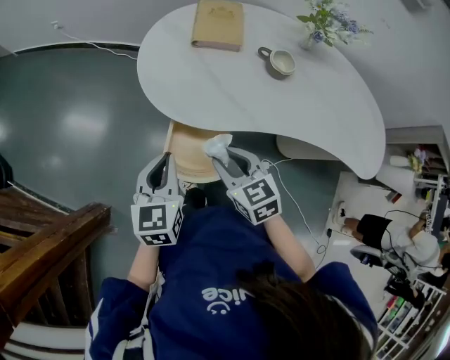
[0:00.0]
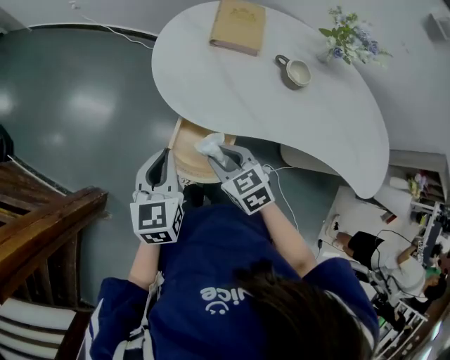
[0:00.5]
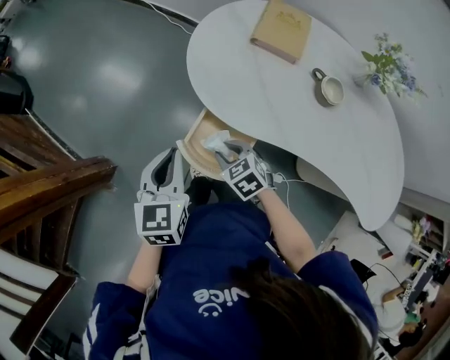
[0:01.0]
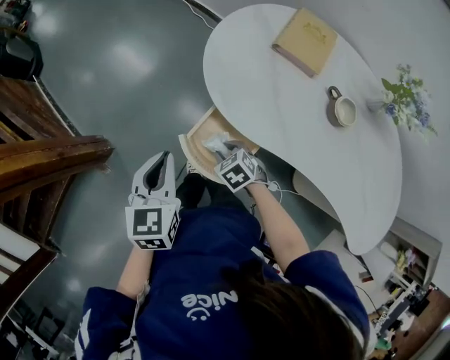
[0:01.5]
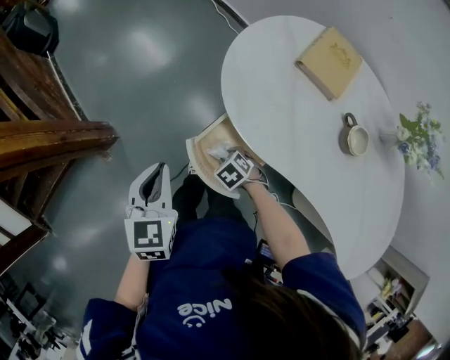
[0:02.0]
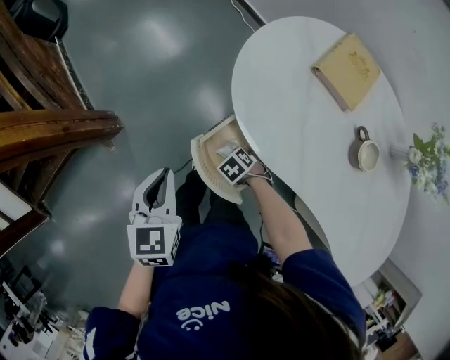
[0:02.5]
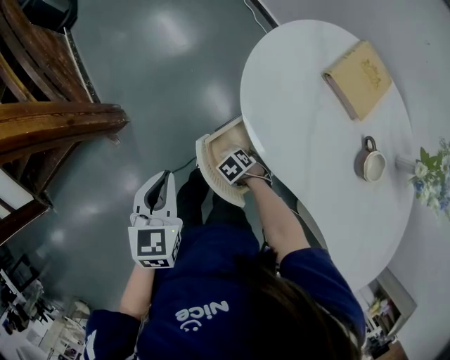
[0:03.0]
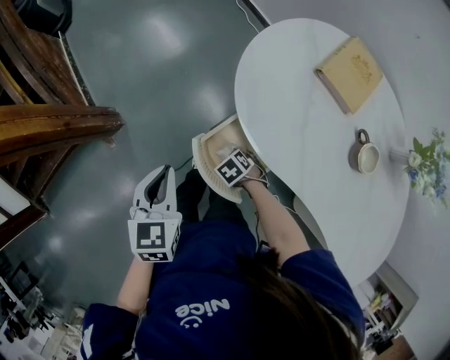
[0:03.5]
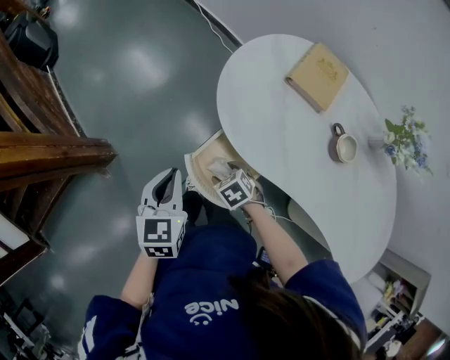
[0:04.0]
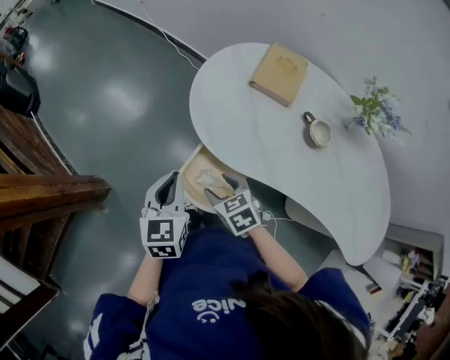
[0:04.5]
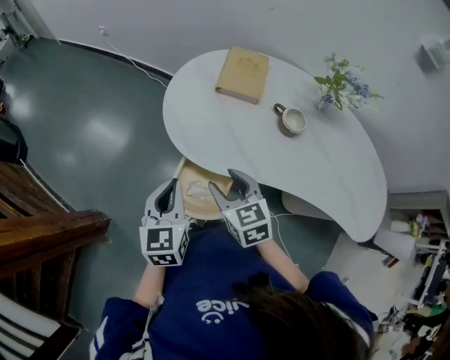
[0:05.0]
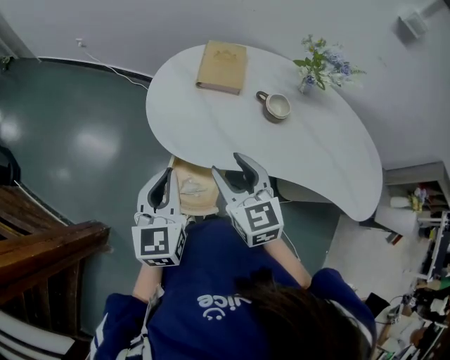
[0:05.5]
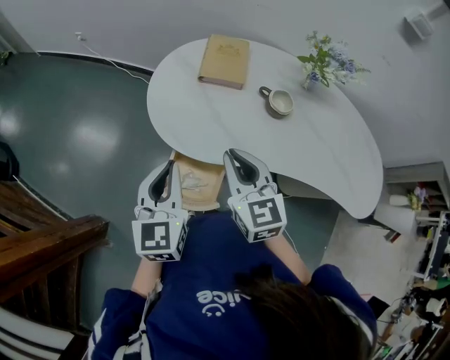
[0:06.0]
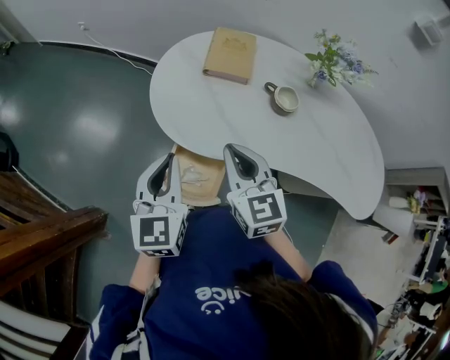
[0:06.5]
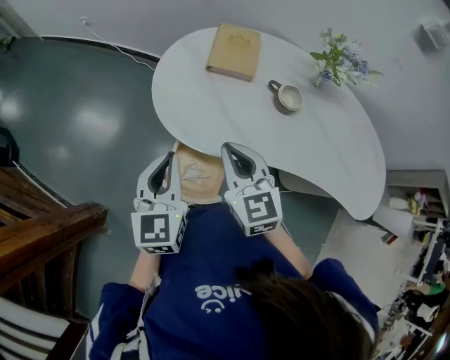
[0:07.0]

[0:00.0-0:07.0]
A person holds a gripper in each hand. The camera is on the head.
0:00.0 to 0:02.0: The left gripper changes place by roughly 10 cm, and rotates some 30 degrees. Meanwhile the right gripper is displaced downward by approximately 25 cm, and angles its fingers downward, by approximately 40 degrees.
0:02.0 to 0:03.5: The right gripper opens up.
0:03.5 to 0:05.0: The right gripper moves upward, approximately 30 cm, and angles its fingers upward, by some 40 degrees. Meanwhile the left gripper shifts by approximately 15 cm, and swivels approximately 30 degrees.
0:05.0 to 0:07.0: The right gripper is displaced upward by some 5 cm, and closes up.

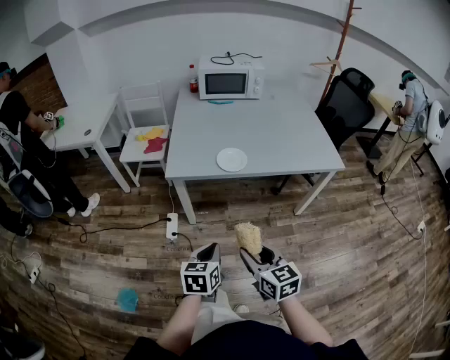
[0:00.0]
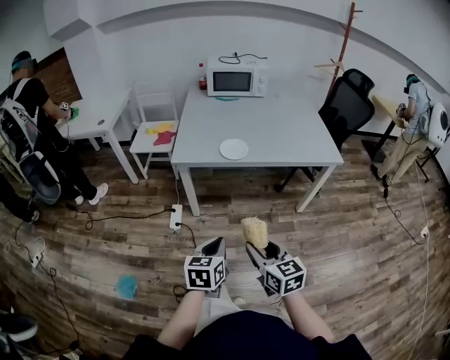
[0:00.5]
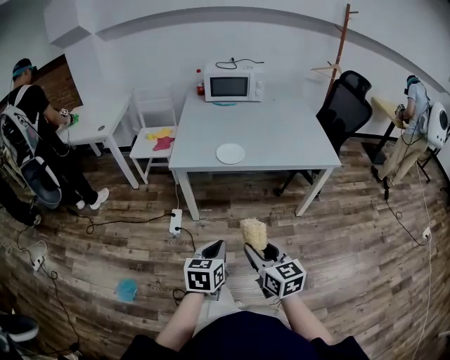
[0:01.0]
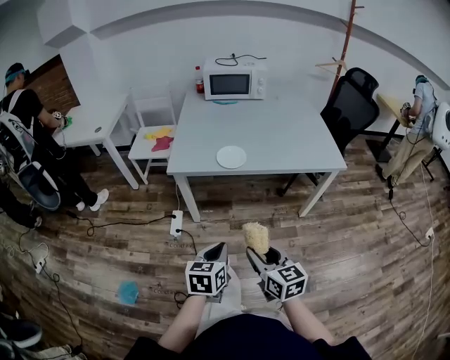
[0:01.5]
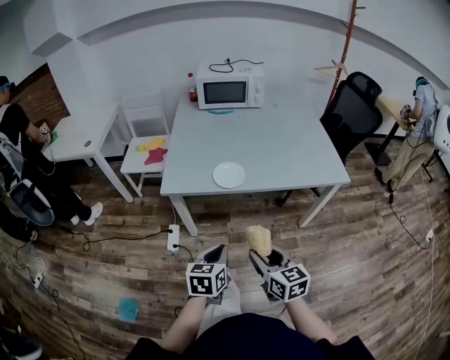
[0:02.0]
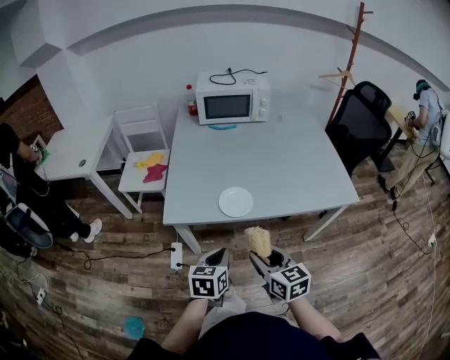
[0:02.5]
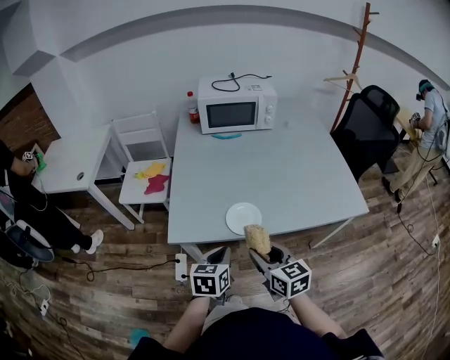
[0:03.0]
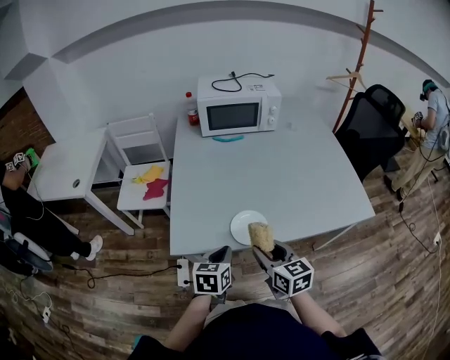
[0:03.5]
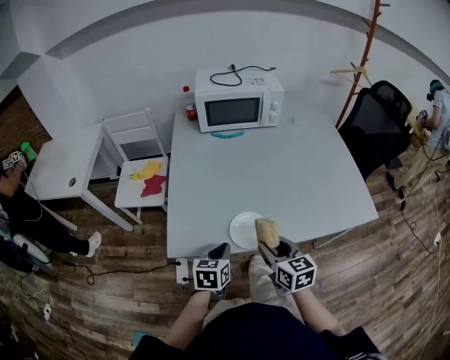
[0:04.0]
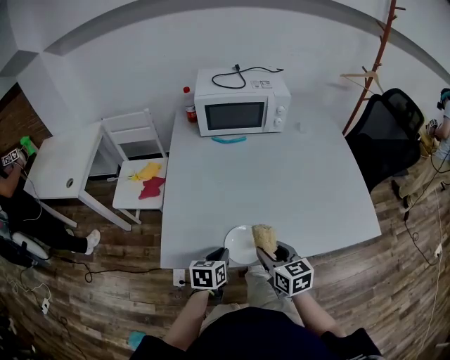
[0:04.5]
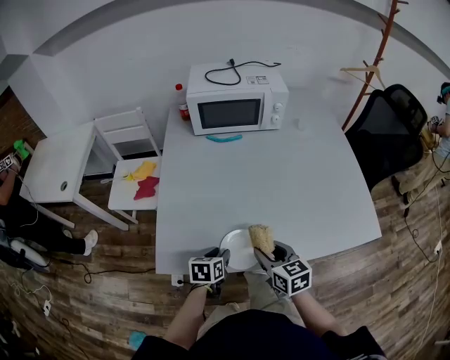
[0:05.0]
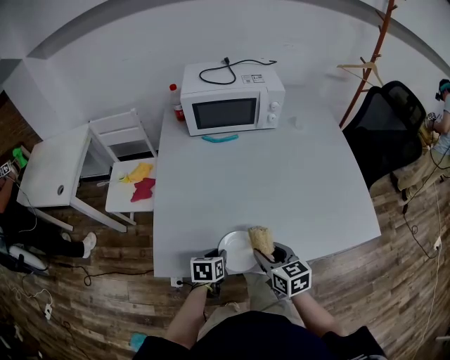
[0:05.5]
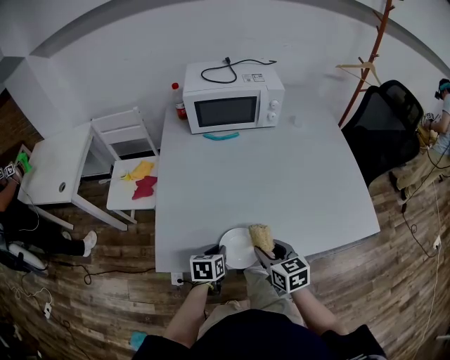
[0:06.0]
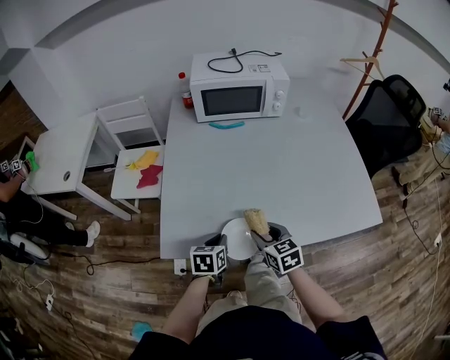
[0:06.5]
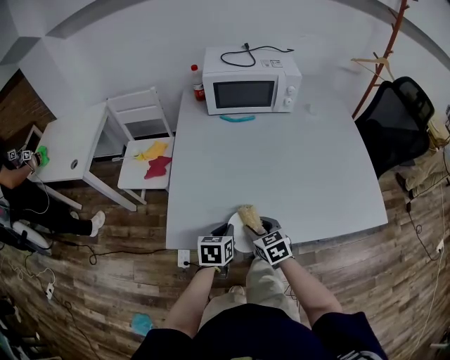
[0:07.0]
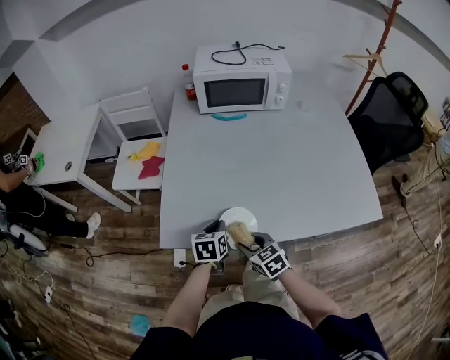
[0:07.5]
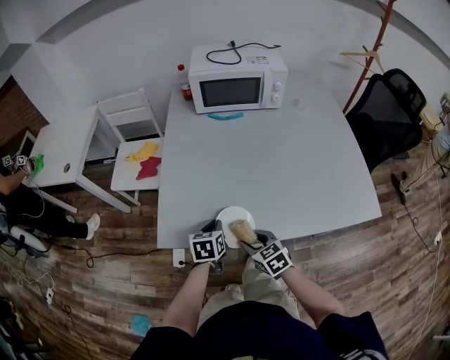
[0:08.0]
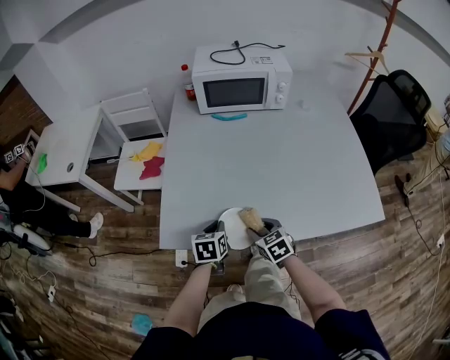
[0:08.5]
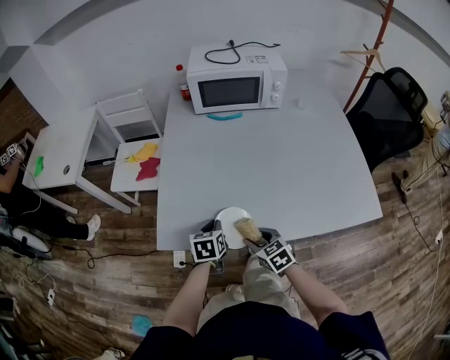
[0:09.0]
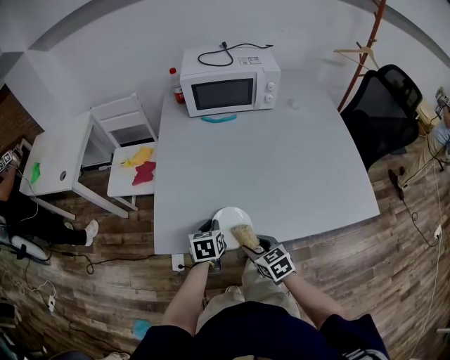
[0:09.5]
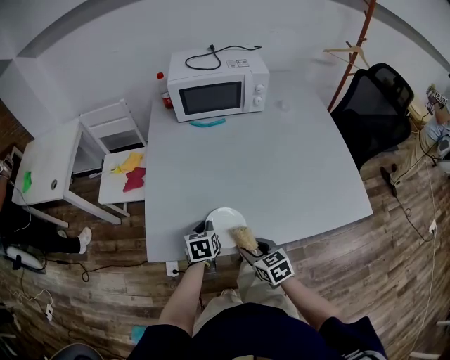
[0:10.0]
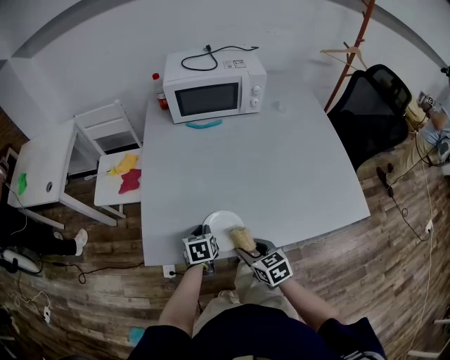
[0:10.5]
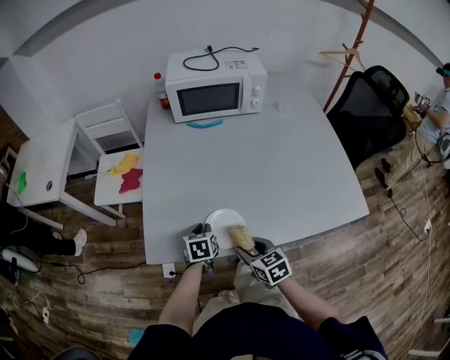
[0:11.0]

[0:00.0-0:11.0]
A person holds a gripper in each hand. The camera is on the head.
0:00.0 to 0:02.0: The left gripper shifts roughly 10 cm forward and to the right. Meanwhile the right gripper moves to the right and forward, approximately 10 cm.
0:02.0 to 0:03.5: The grippers both shift forward by approximately 25 cm.
0:03.5 to 0:05.5: The right gripper is displaced forward, downward and to the right by approximately 15 cm, while the left gripper is displaced downward and forward by approximately 15 cm.
0:05.5 to 0:07.5: The right gripper is displaced to the left, downward and backward by about 15 cm, and turns by roughly 20 degrees. Meanwhile the left gripper moves some 5 cm.
0:09.0 to 0:11.0: The grippers stay close to where they were, moving slightly.

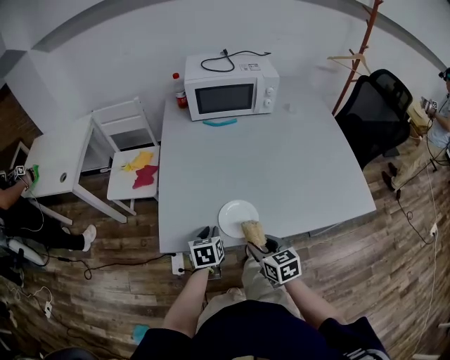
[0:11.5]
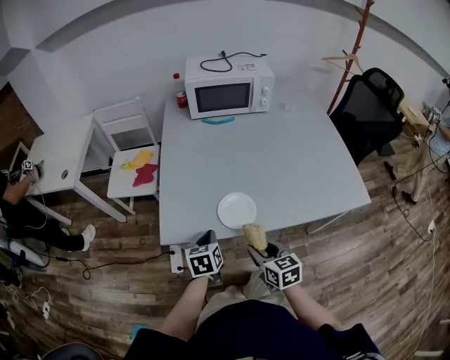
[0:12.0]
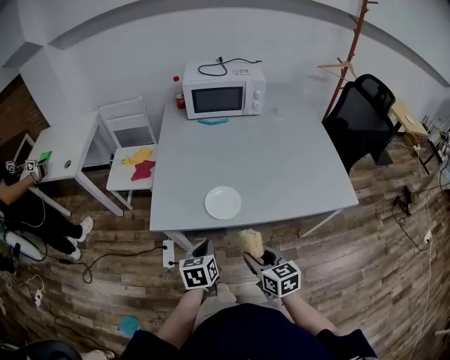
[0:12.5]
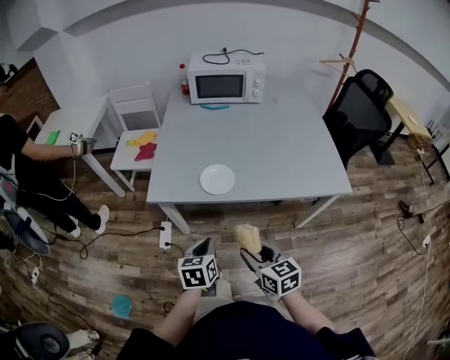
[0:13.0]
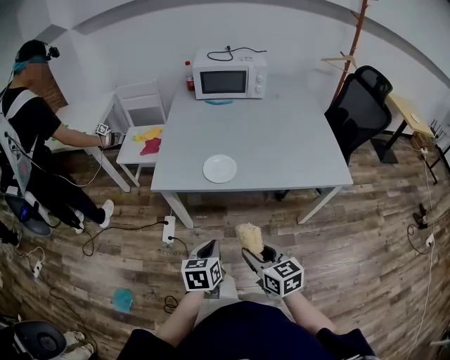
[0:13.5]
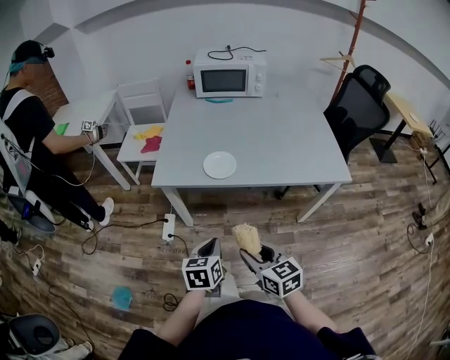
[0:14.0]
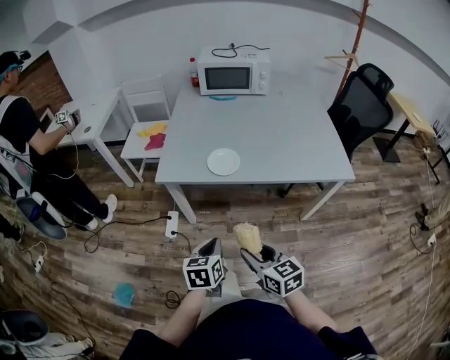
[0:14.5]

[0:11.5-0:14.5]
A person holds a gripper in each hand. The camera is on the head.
0:11.5 to 0:13.0: Both grippers move backward, roughly 25 cm.
0:13.0 to 0:14.5: The two grippers go some 10 cm backward.

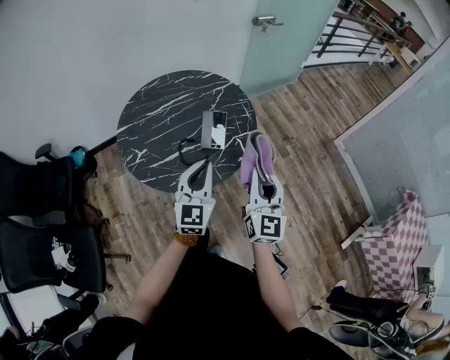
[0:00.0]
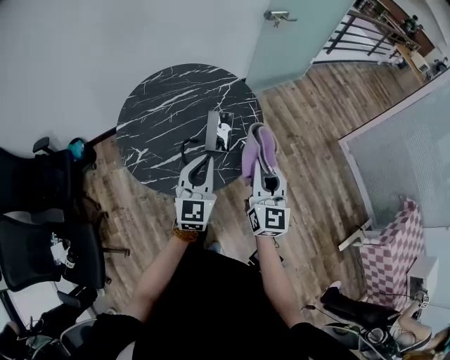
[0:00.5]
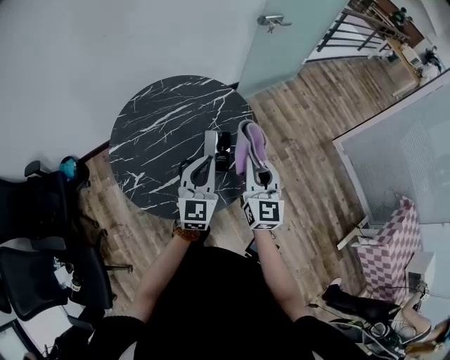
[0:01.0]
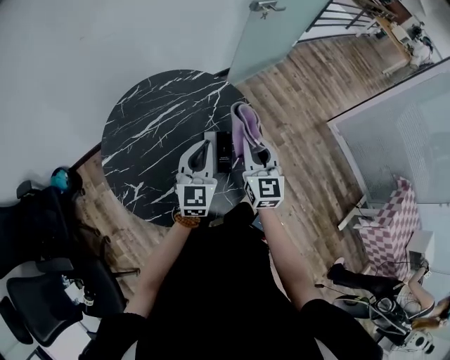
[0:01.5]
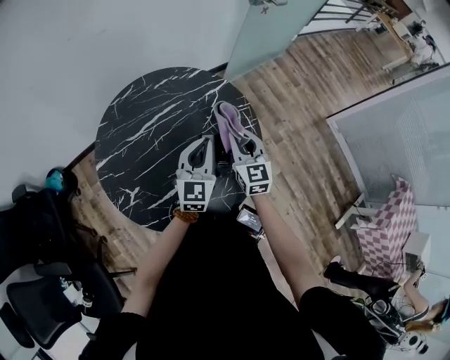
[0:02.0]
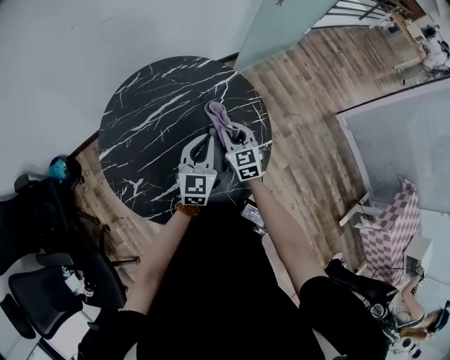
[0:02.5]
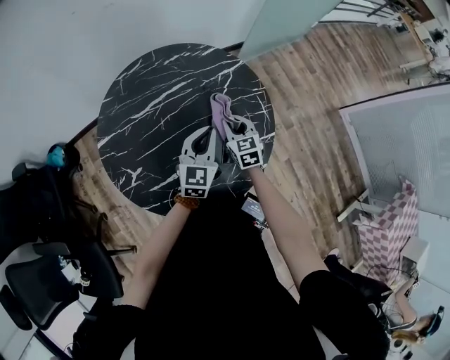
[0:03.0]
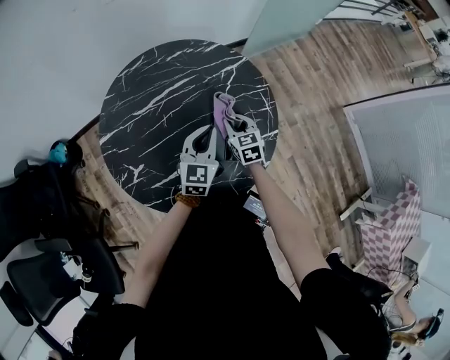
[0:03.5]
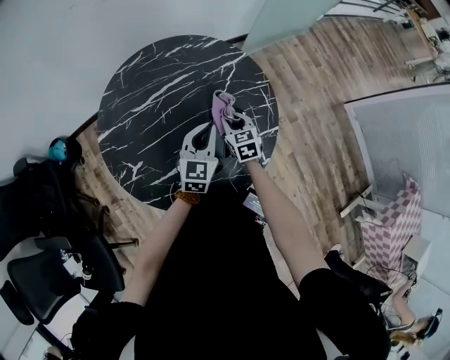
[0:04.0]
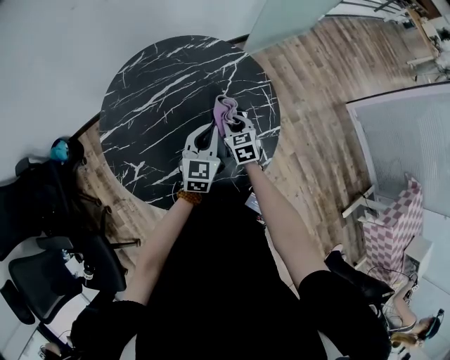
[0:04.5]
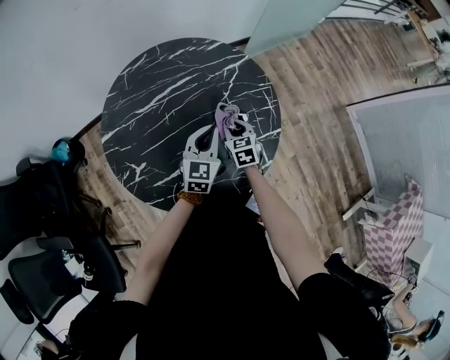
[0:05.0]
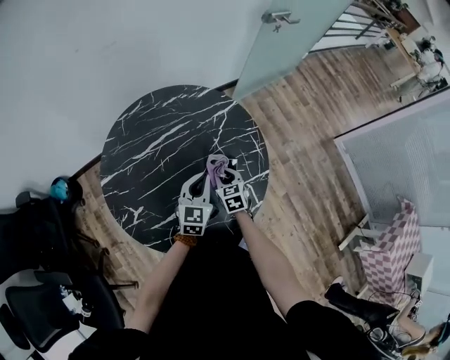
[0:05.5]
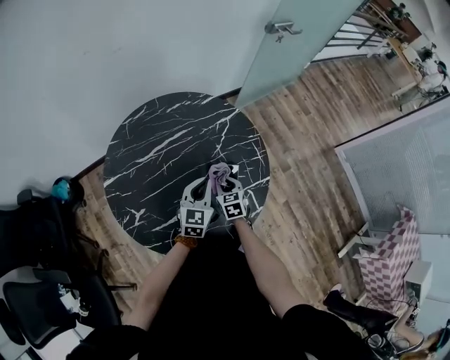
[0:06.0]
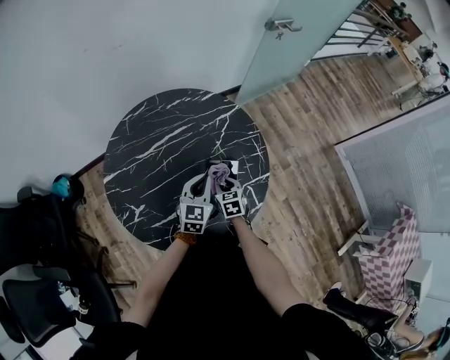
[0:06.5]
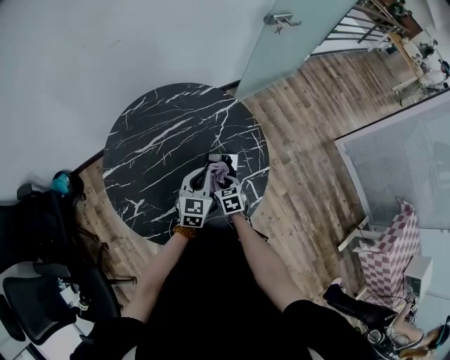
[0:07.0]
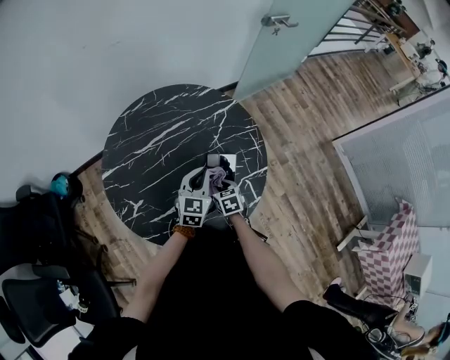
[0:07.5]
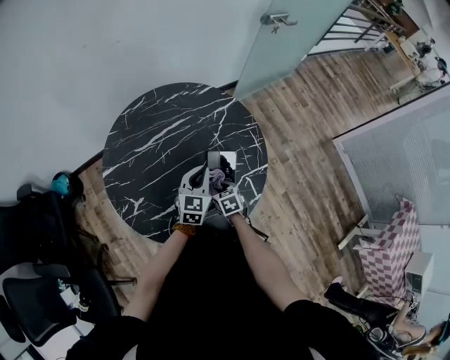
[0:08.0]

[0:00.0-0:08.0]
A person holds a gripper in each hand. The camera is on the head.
0:00.0 to 0:02.0: Both grippers move forward, approximately 30 cm. The right gripper turns by about 20 degrees.
0:02.0 to 0:04.0: The right gripper goes approximately 15 cm downward, and rotates roughly 30 degrees. The left gripper goes some 10 cm downward.
0:04.0 to 0:06.0: The right gripper moves some 5 cm.
0:06.0 to 0:08.0: The right gripper is displaced backward by some 5 cm.
